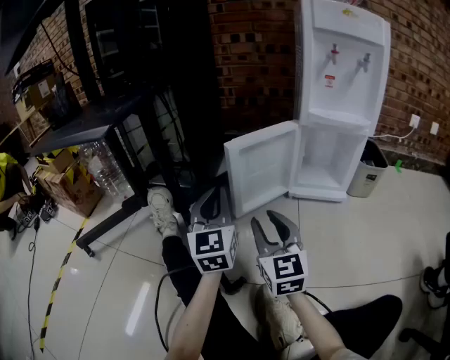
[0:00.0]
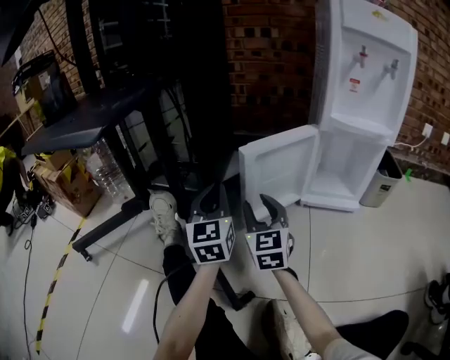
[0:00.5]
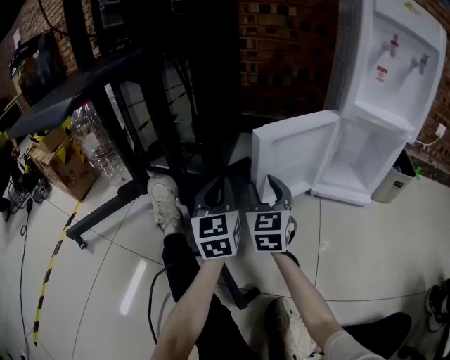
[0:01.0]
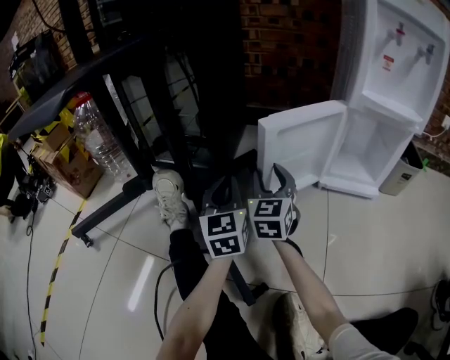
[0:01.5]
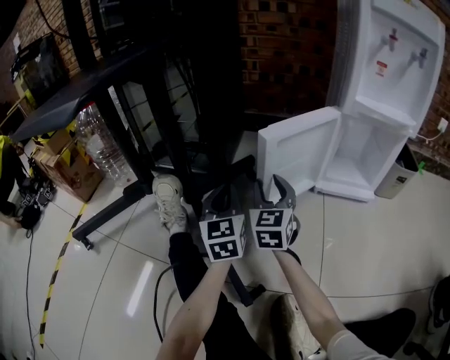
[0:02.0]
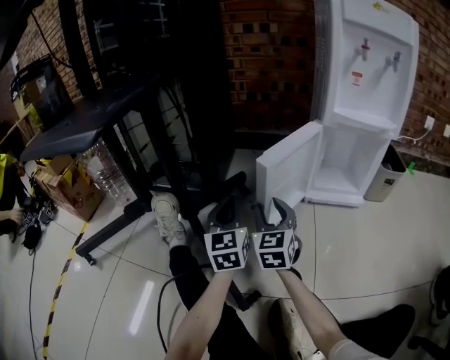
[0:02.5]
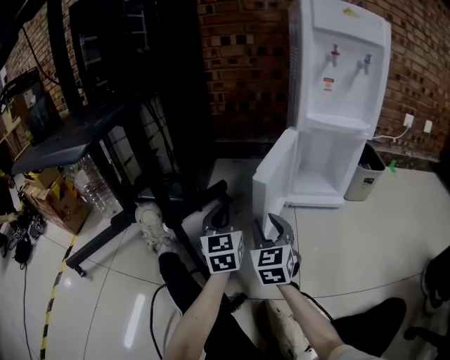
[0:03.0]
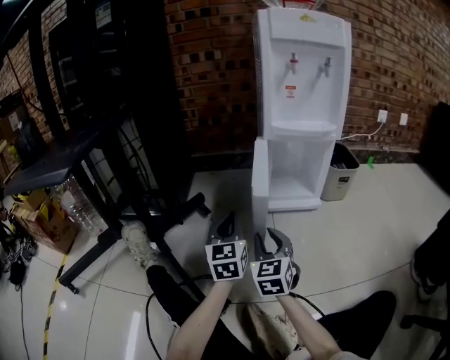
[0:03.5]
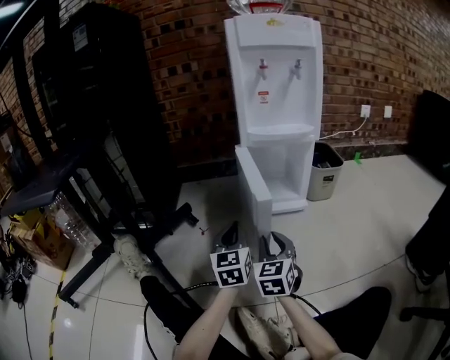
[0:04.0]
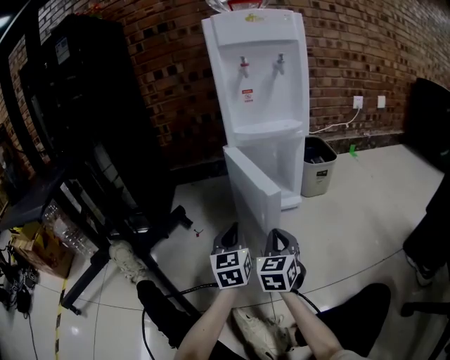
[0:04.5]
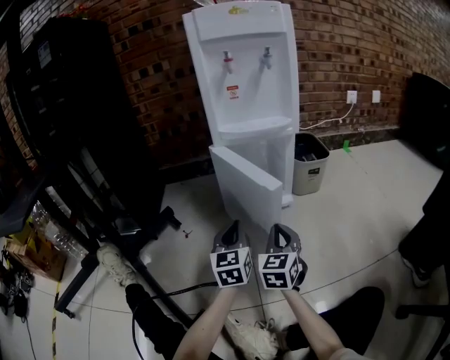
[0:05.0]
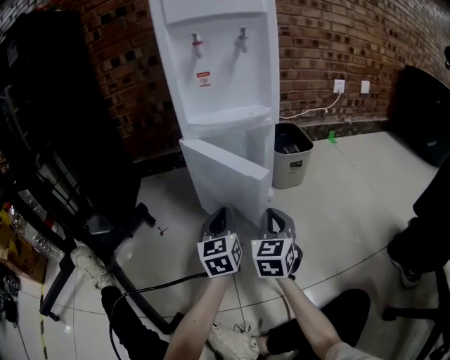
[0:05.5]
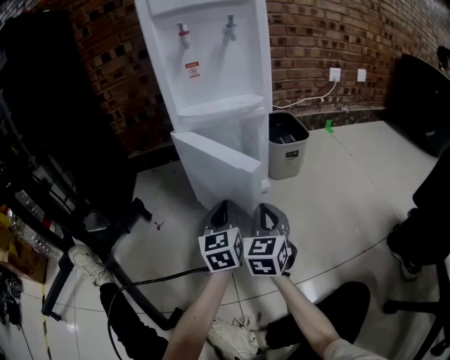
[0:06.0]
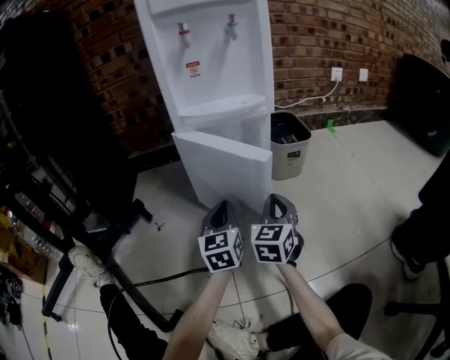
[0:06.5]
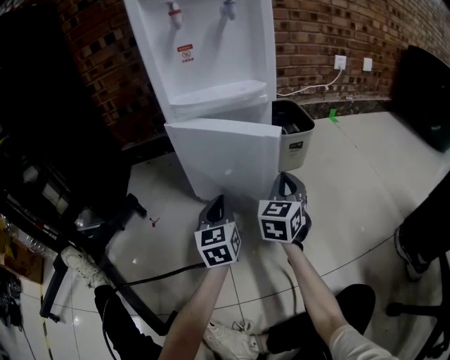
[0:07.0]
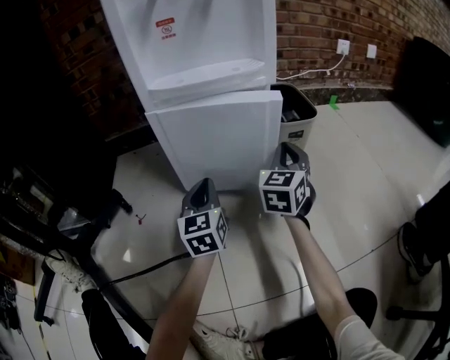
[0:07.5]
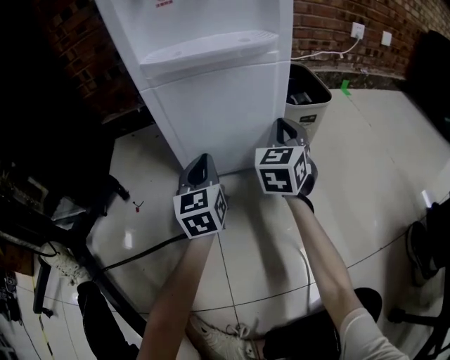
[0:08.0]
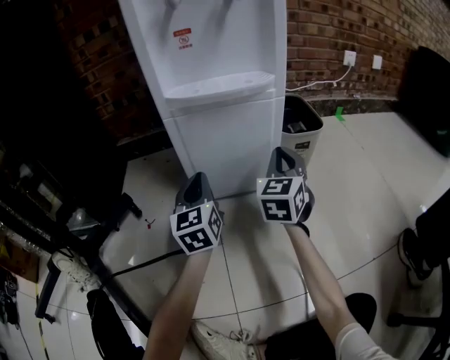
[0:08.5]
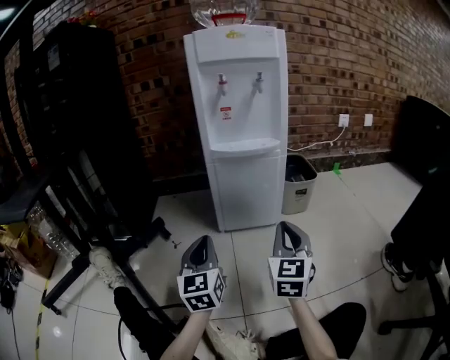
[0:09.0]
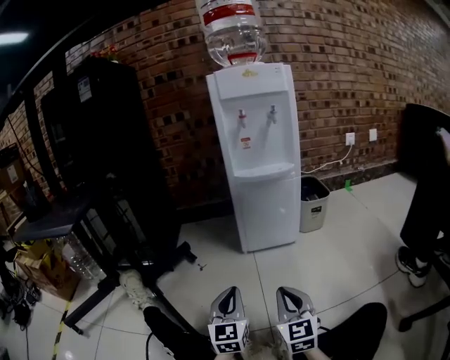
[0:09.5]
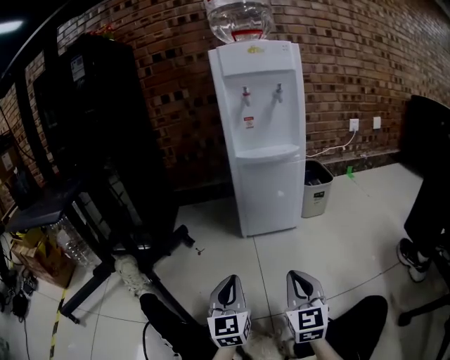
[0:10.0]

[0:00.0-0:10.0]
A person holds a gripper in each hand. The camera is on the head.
0:00.0 to 0:02.0: The left gripper goes approximately 15 cm downward and forward; the right gripper is displaced forward by roughly 20 cm.
0:02.0 to 0:04.0: The right gripper travels to the right and backward by approximately 25 cm. Meanwhile the left gripper moves to the right, roughly 25 cm, and swivels approximately 20 degrees.
0:04.0 to 0:06.0: The two grippers go about 15 cm to the right and forward. The right gripper closes up.
0:06.0 to 0:08.0: The right gripper is displaced forward by approximately 20 cm, while the left gripper travels forward by some 10 cm.
0:08.0 to 0:10.0: Both grippers move backward, some 35 cm. The right gripper swivels some 20 degrees.

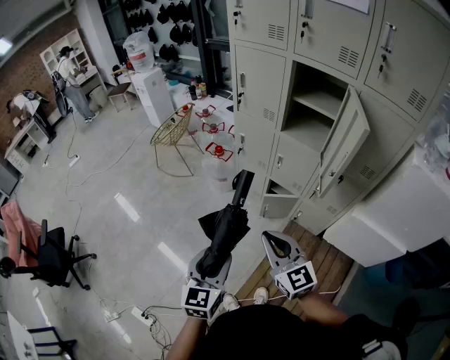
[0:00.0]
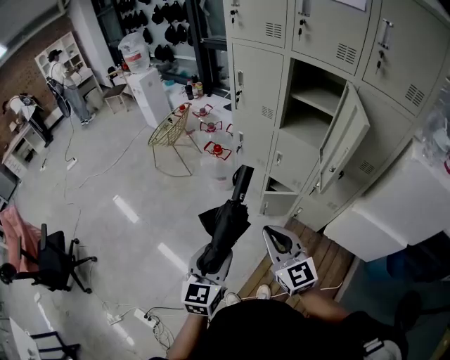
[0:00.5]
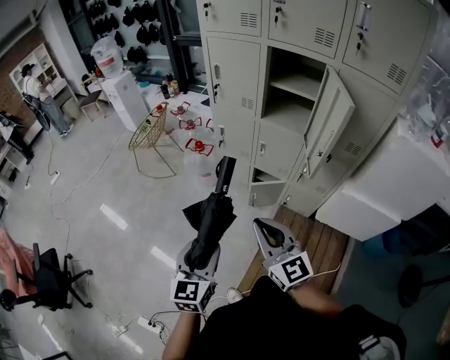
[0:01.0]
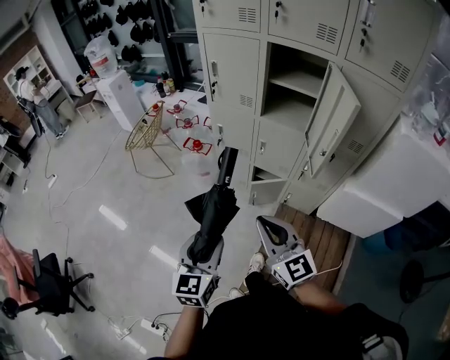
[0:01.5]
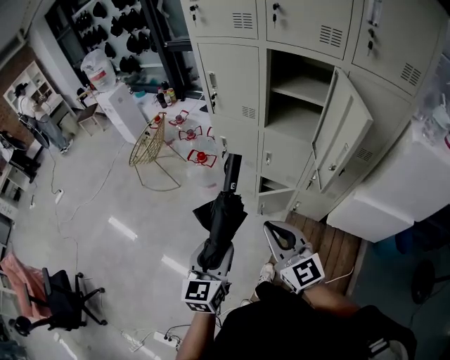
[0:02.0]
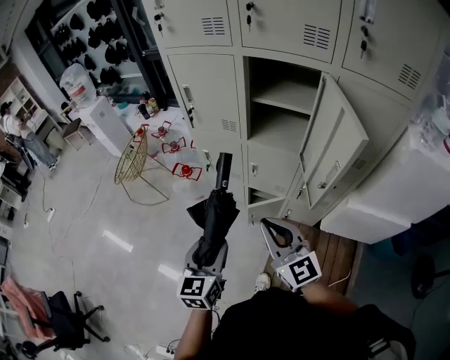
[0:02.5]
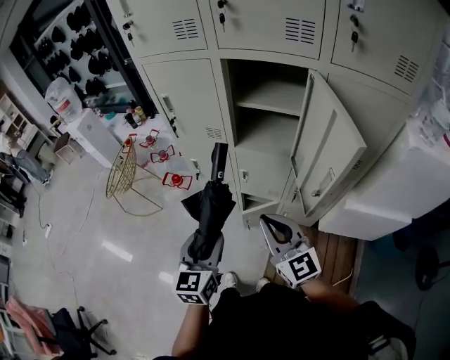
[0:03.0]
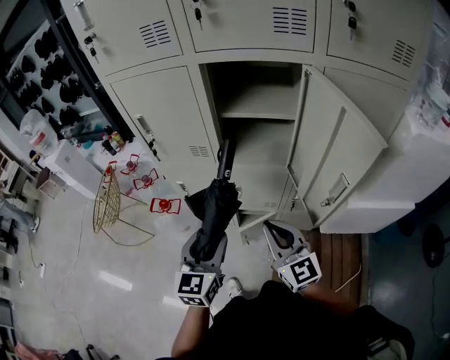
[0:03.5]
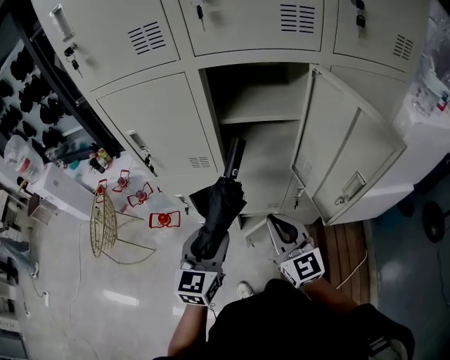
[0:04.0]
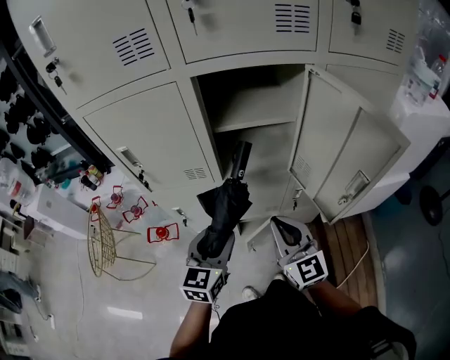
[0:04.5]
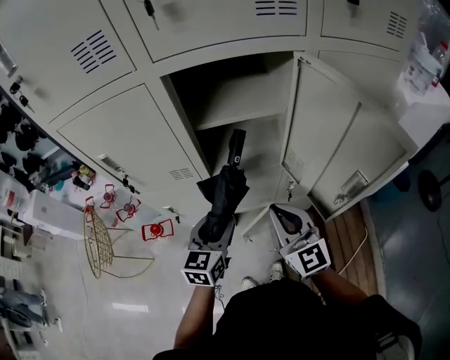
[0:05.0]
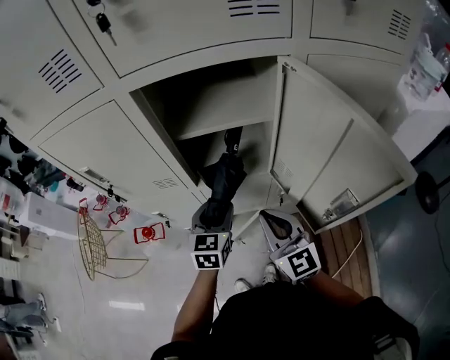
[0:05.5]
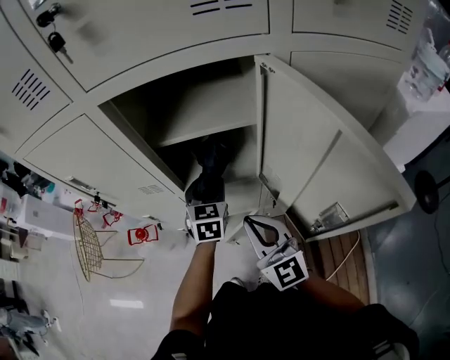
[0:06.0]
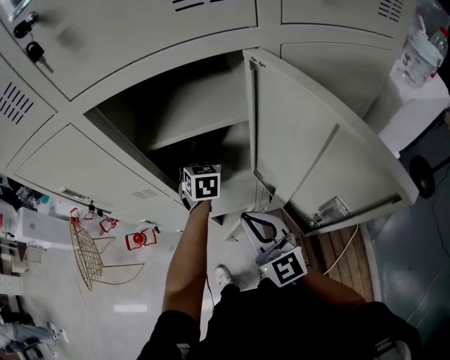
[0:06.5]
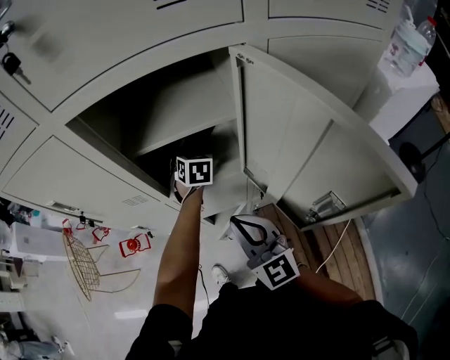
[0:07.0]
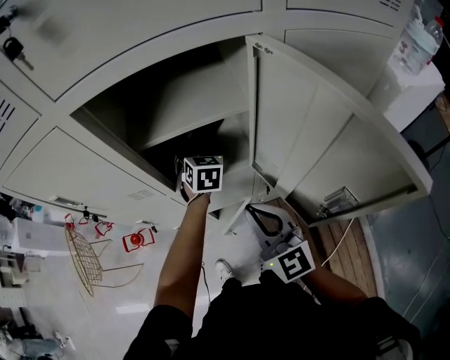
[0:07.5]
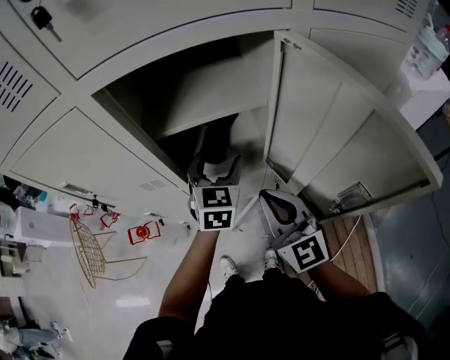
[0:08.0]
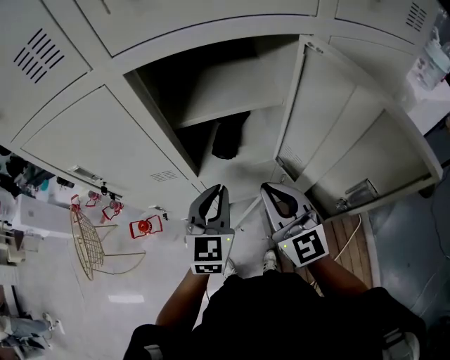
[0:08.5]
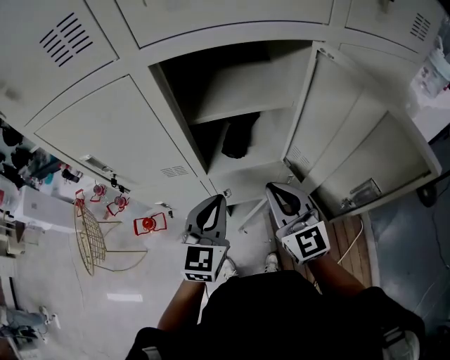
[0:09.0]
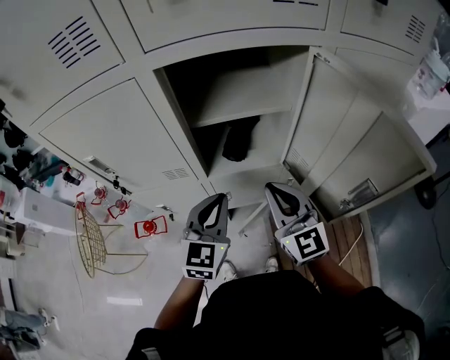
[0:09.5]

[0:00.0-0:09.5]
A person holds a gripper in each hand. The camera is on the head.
0:00.0 to 0:02.0: The grippers both shift forward by about 10 cm.
0:02.0 to 0:04.0: The left gripper changes place by some 35 cm, and changes its angle by approximately 30 degrees. Meanwhile the right gripper moves roughly 30 cm, and changes its angle by approximately 30 degrees.
0:04.0 to 0:05.5: The left gripper shifts approximately 20 cm forward, to the right and downward. Meanwhile the right gripper goes about 5 cm forward.
0:05.5 to 0:07.5: The left gripper travels forward and to the right by about 20 cm, and opens its fingers.
0:07.5 to 0:09.5: The left gripper heads backward, covering some 20 cm, turns by about 20 degrees, and closes its fingers.

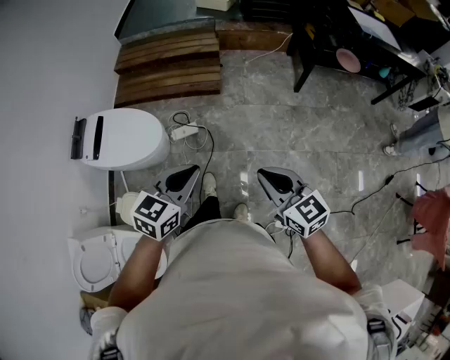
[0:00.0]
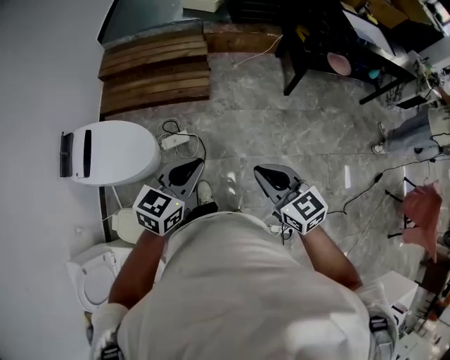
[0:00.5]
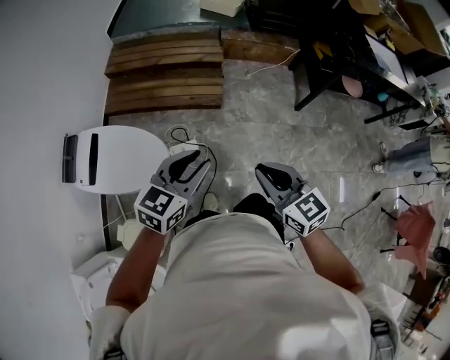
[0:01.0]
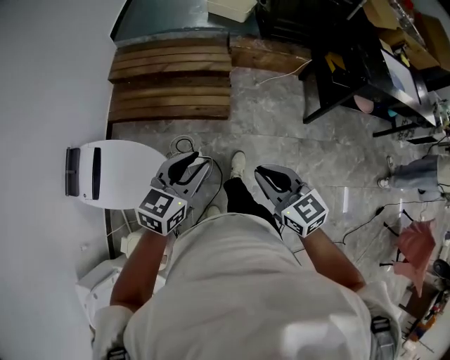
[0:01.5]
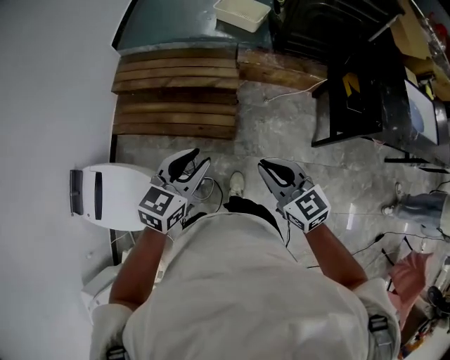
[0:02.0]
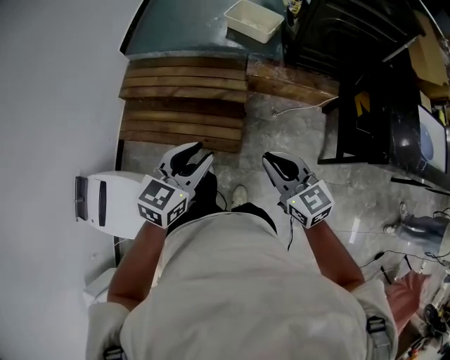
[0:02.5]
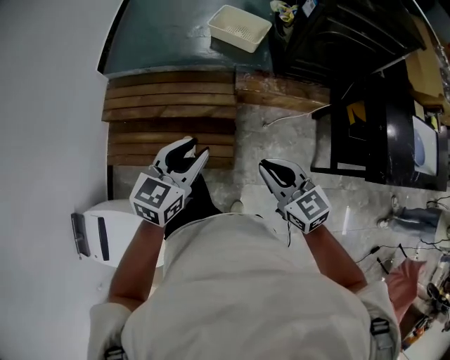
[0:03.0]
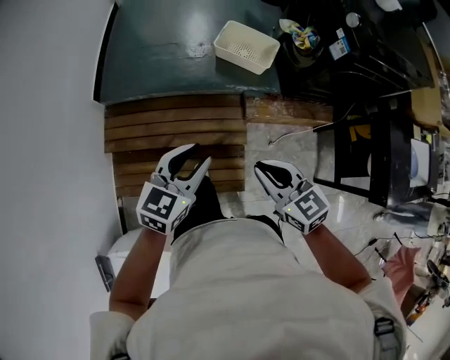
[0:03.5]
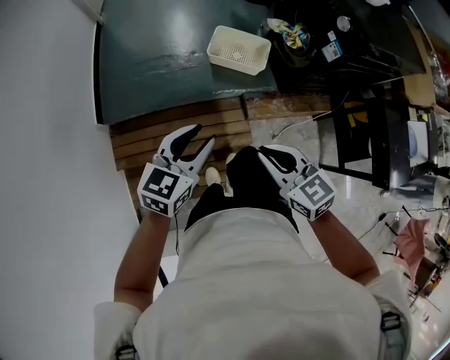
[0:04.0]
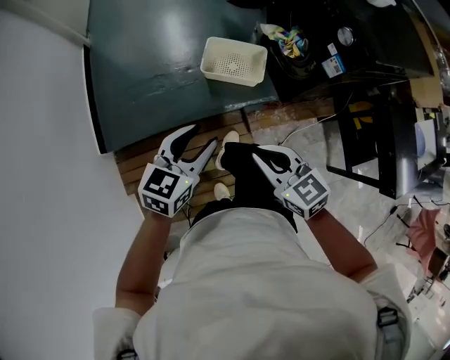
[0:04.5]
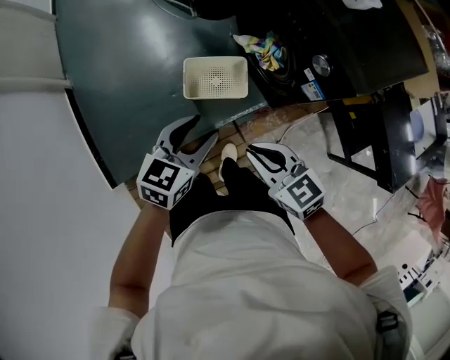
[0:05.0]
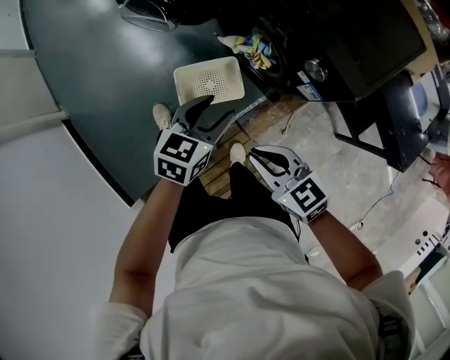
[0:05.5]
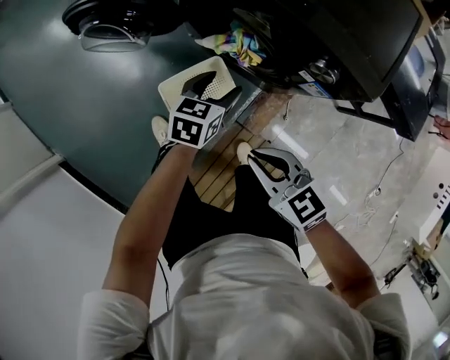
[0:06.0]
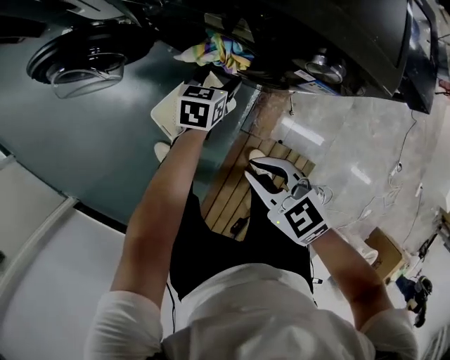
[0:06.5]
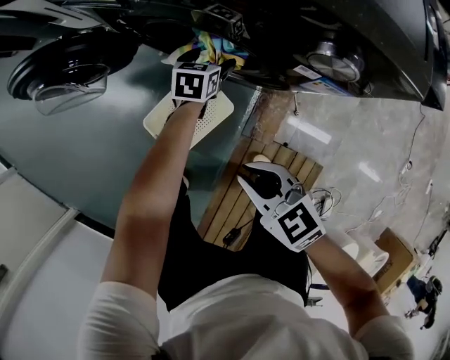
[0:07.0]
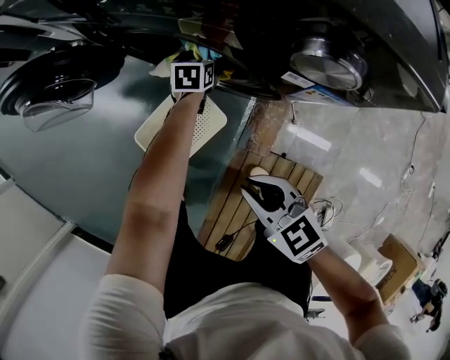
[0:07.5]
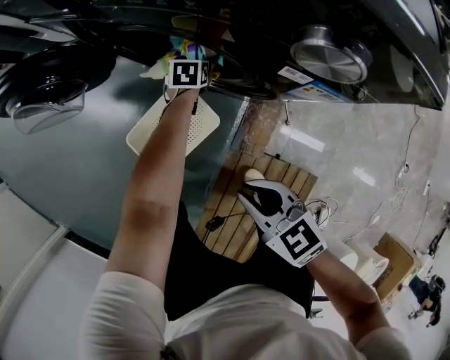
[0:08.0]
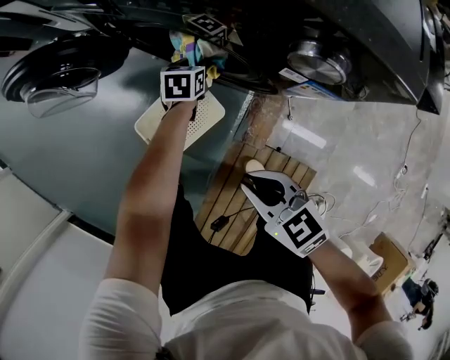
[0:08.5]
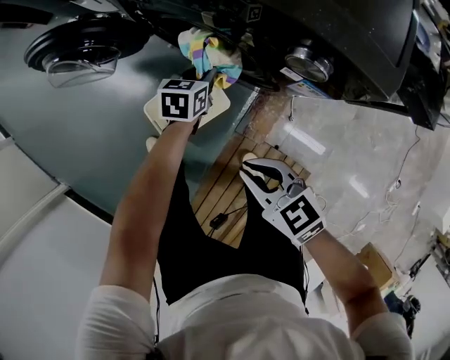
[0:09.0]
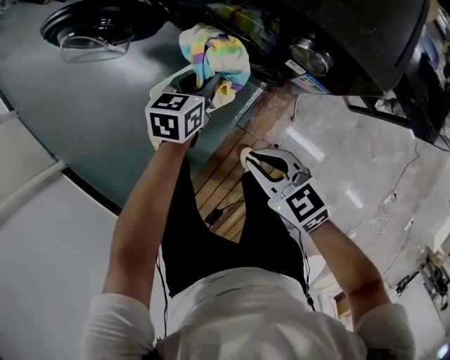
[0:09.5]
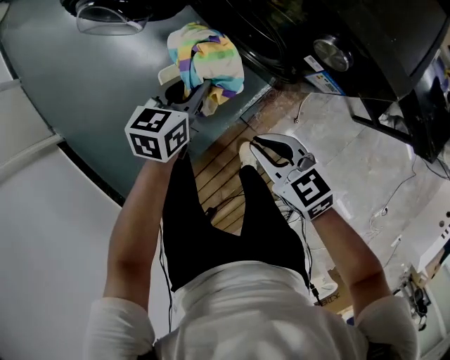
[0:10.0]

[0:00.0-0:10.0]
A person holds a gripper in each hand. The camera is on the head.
0:00.0 to 0:02.0: The two grippers travel together, forward, approximately 60 cm.
0:02.0 to 0:04.0: The two grippers travel together, forward, some 60 cm.
0:04.0 to 0:06.0: Both grippers are carried approximately 50 cm. The left gripper rotates roughly 40 degrees; the right gripper rotates some 40 degrees.
0:06.0 to 0:08.0: The right gripper is displaced downward by approximately 20 cm, while the left gripper goes about 35 cm downward and forward.
0:08.0 to 0:10.0: The right gripper heads upward, covering some 10 cm. Meanwhile the left gripper goes roughly 40 cm upward, backward and to the left, and rotates approximately 20 degrees.
